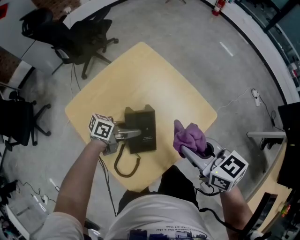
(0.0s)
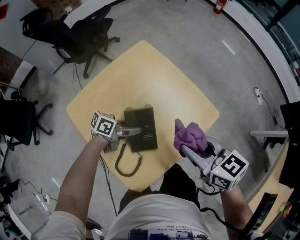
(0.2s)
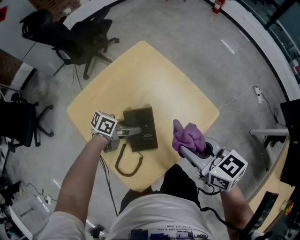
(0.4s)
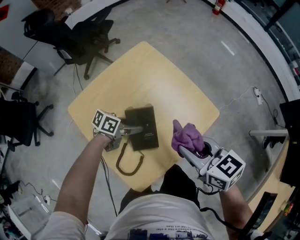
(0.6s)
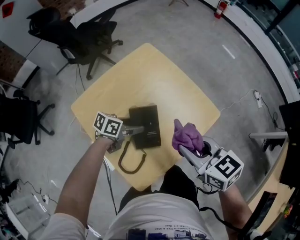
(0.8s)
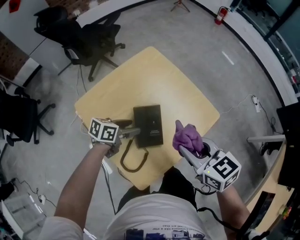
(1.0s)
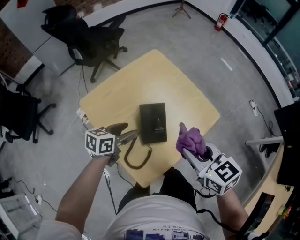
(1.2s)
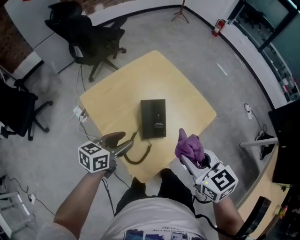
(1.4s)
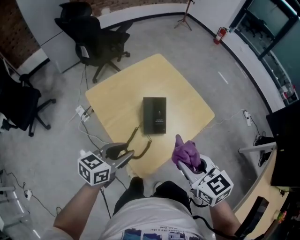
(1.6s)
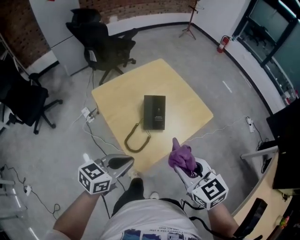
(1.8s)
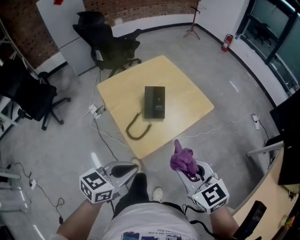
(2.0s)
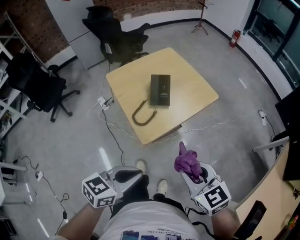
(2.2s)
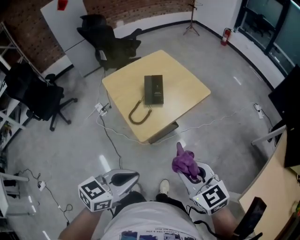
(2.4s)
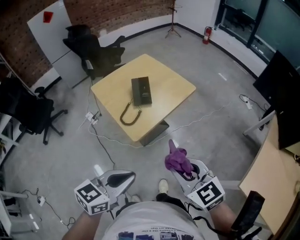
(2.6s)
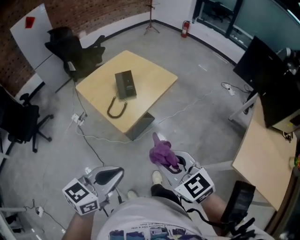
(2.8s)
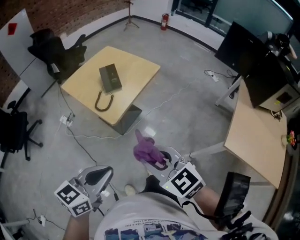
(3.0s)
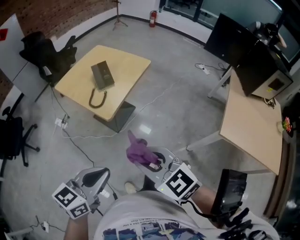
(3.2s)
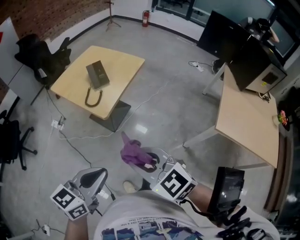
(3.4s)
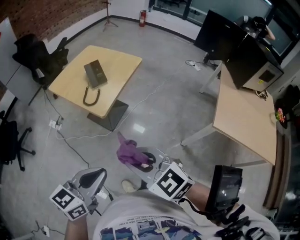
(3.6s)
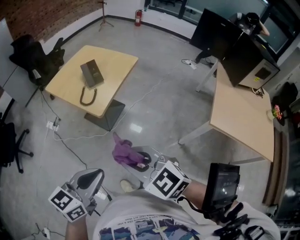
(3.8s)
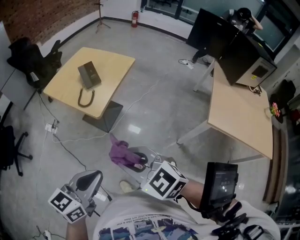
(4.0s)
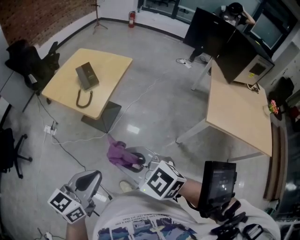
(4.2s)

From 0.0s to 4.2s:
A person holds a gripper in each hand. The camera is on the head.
From 0.0s to 1.4s: The right gripper moves some 10 cm, while the left gripper moves roughly 15 cm, and changes its angle by approximately 40 degrees.
From 1.4s to 2.8s: The left gripper moves backward and upward, approximately 40 cm, turns by roughly 20 degrees, and closes its fingers. Meanwhile the right gripper is displaced backward by some 30 cm.
From 2.8s to 4.2s: The left gripper goes some 10 cm backward. The right gripper goes approximately 15 cm backward and to the left.

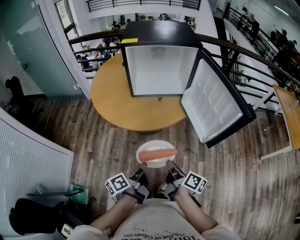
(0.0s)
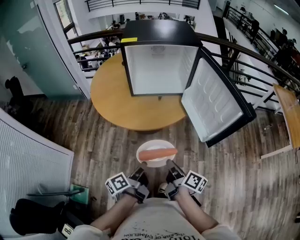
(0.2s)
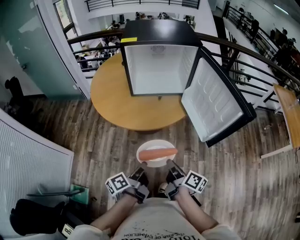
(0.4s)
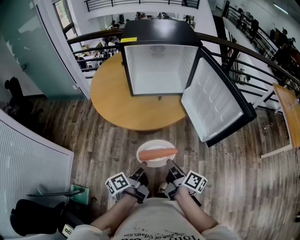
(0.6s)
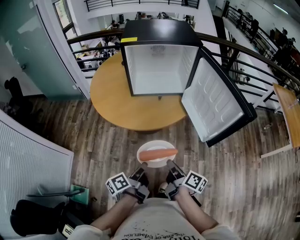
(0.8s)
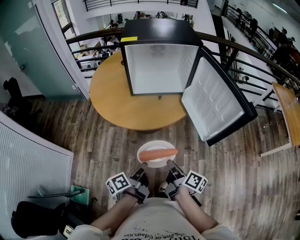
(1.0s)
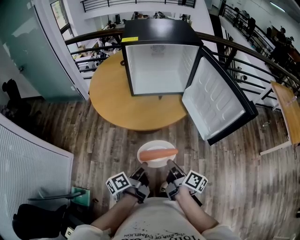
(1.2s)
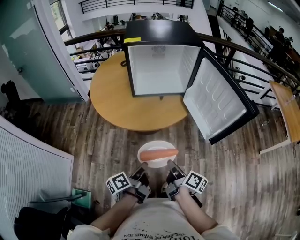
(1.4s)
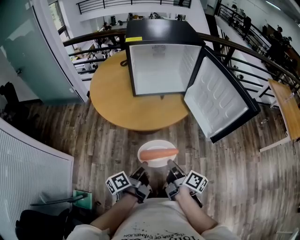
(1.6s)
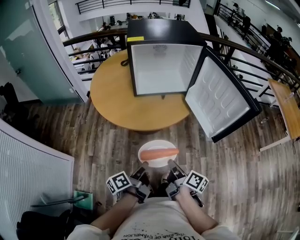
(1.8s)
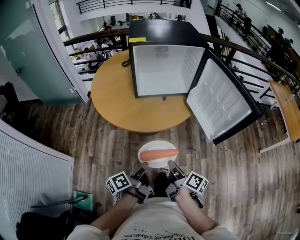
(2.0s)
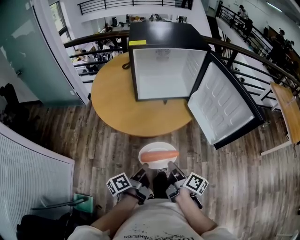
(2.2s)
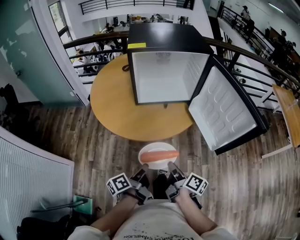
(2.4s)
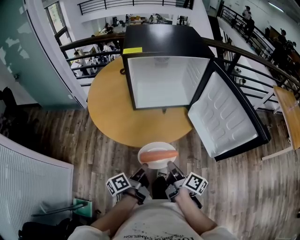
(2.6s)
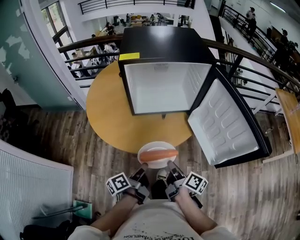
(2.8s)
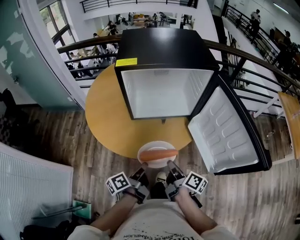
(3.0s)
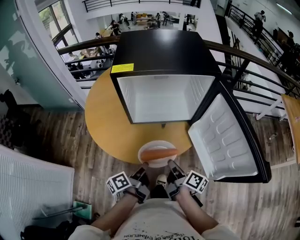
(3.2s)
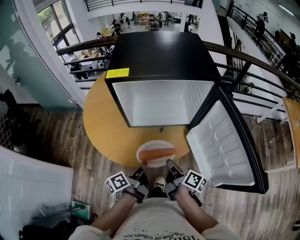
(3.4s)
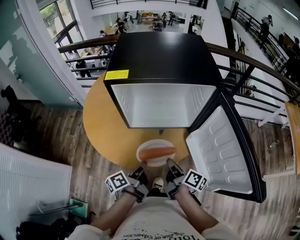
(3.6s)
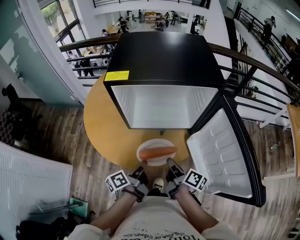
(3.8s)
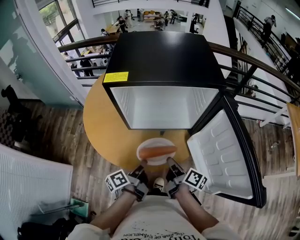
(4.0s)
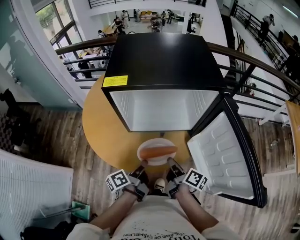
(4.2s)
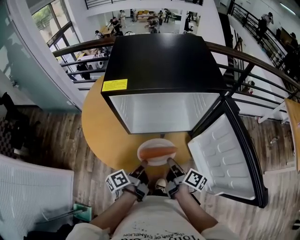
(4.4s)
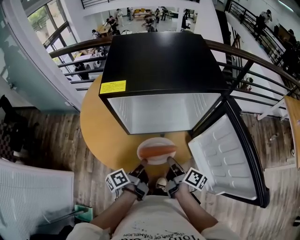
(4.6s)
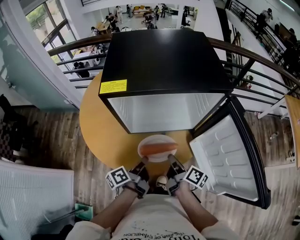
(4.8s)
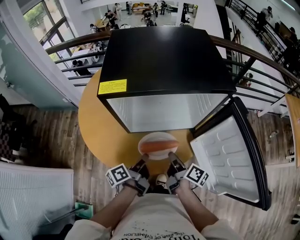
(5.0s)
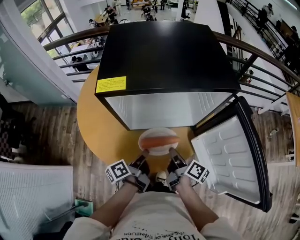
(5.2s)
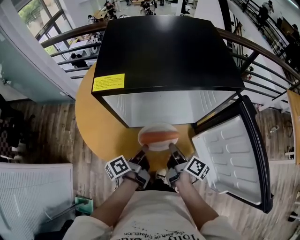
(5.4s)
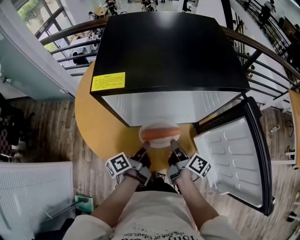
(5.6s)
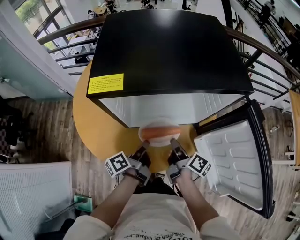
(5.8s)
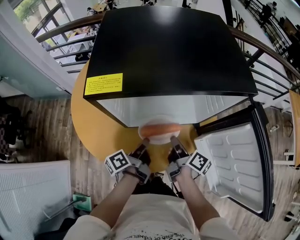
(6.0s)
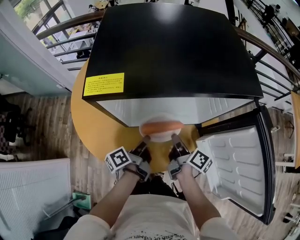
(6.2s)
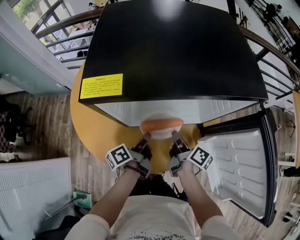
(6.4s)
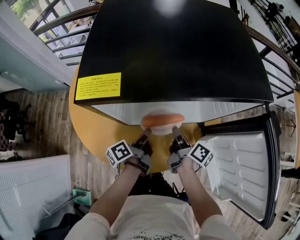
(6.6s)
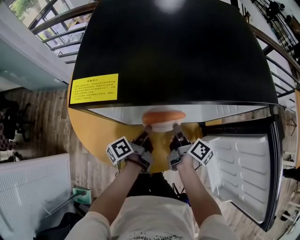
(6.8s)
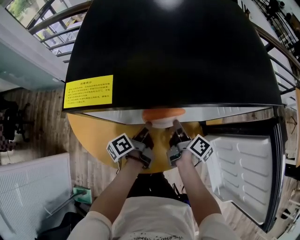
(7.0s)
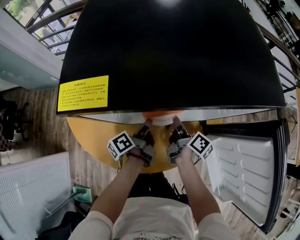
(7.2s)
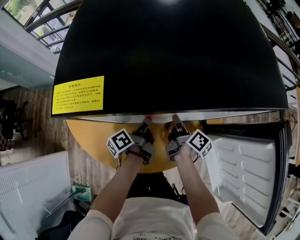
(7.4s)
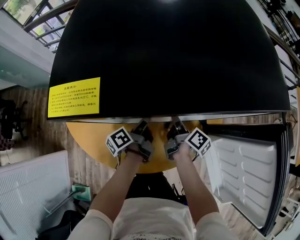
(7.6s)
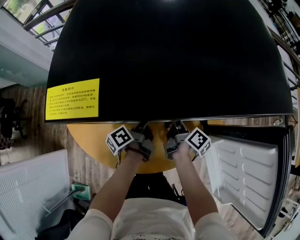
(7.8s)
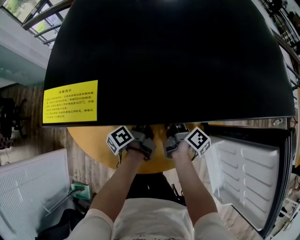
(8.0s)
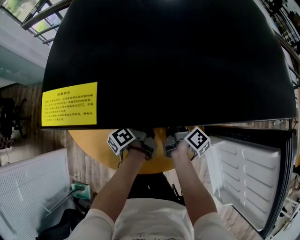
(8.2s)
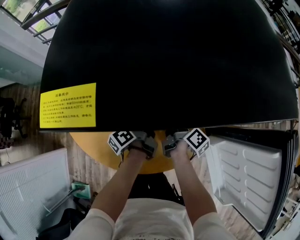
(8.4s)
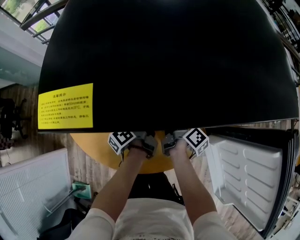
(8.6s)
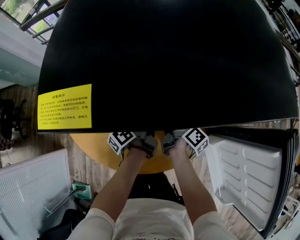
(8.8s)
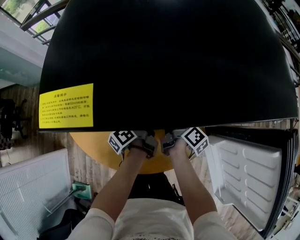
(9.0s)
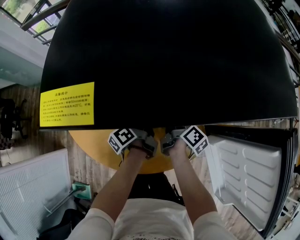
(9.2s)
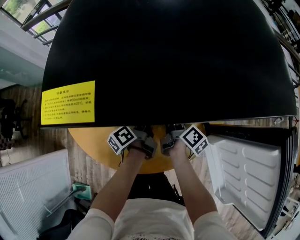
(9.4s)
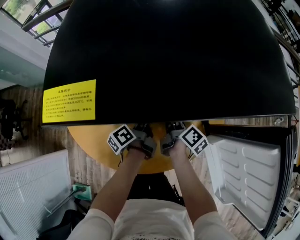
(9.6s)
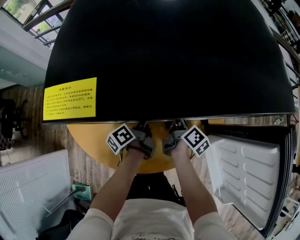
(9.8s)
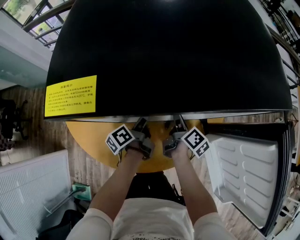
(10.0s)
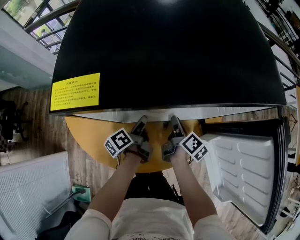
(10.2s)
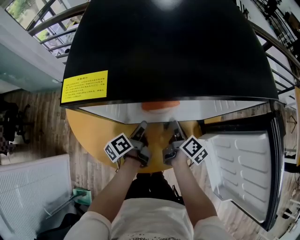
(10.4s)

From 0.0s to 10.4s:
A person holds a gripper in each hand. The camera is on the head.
From 1.4s to 3.0s: The right gripper shifts by about 20 cm.
From 3.0s to 4.4s: The right gripper shifts by approximately 15 cm.
From 4.4s to 6.0s: The right gripper shifts by some 10 cm.
From 6.0s to 7.4s: The right gripper moves approximately 10 cm.
From 9.0s to 10.4s: The right gripper ends up approximately 5 cm from where it was.

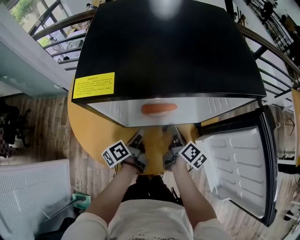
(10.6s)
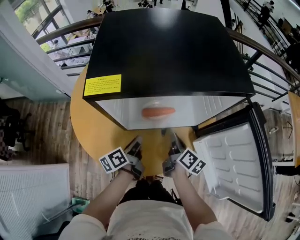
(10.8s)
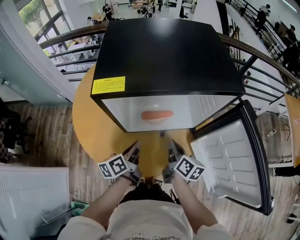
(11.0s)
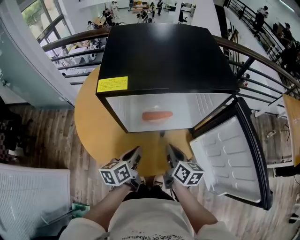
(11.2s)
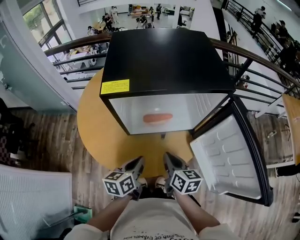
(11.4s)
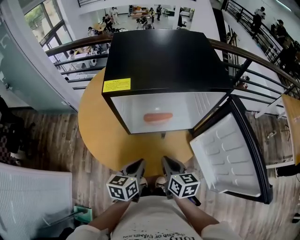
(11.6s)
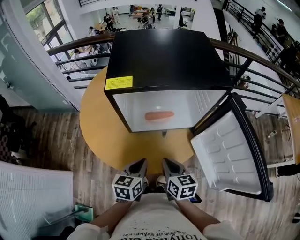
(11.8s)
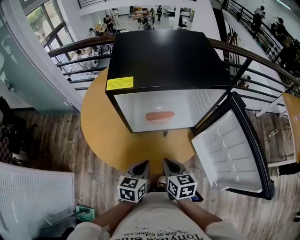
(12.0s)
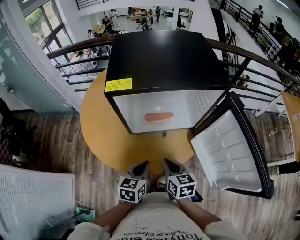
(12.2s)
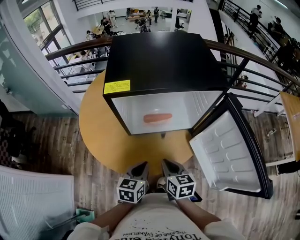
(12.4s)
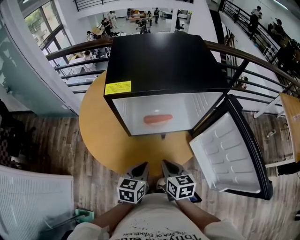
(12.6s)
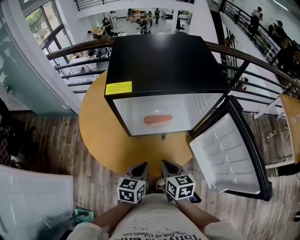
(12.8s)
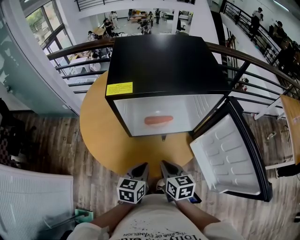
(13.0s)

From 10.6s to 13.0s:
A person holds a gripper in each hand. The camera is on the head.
From 10.6s to 11.8s: The right gripper changes place by roughly 20 cm, and rolls counterclockwise, seen from behind, by roughly 40 degrees.

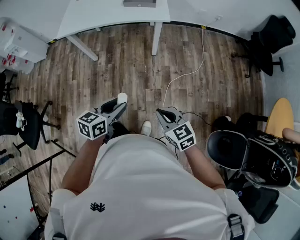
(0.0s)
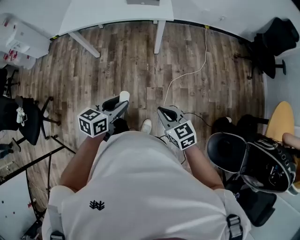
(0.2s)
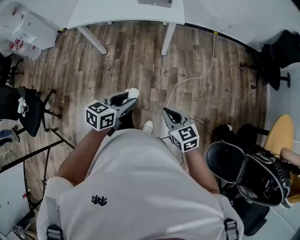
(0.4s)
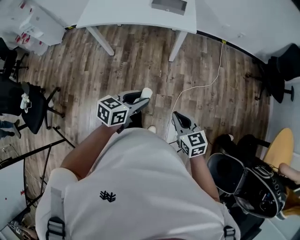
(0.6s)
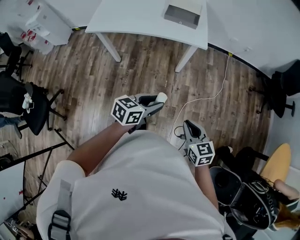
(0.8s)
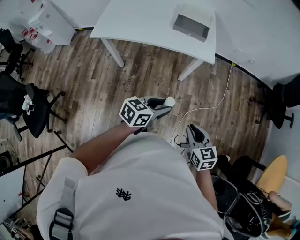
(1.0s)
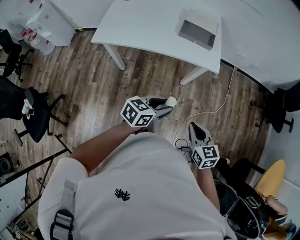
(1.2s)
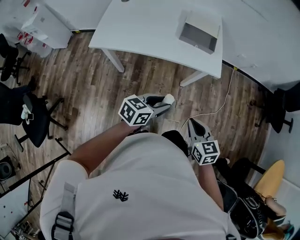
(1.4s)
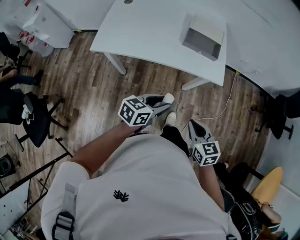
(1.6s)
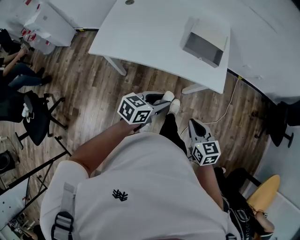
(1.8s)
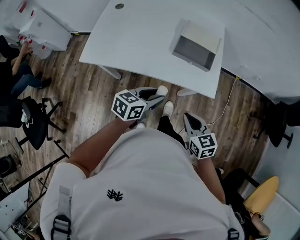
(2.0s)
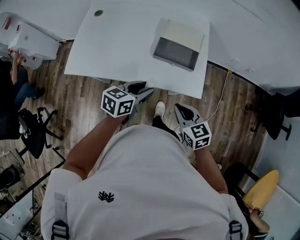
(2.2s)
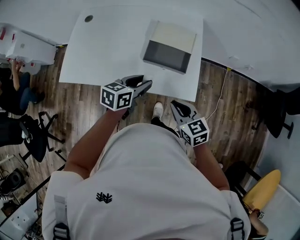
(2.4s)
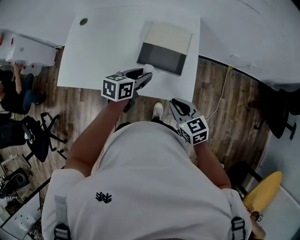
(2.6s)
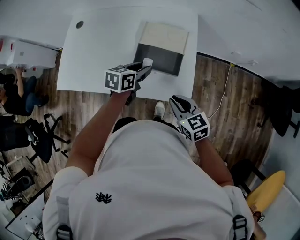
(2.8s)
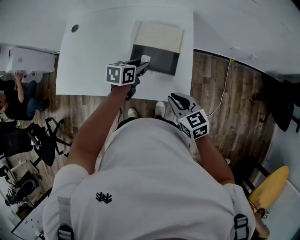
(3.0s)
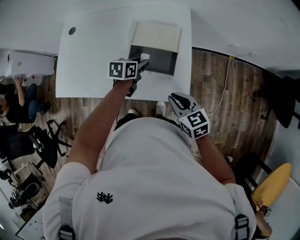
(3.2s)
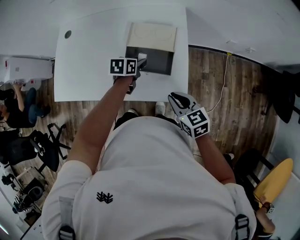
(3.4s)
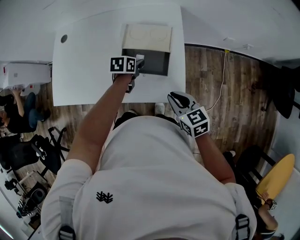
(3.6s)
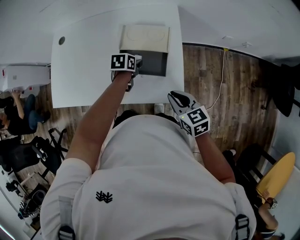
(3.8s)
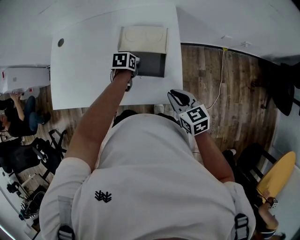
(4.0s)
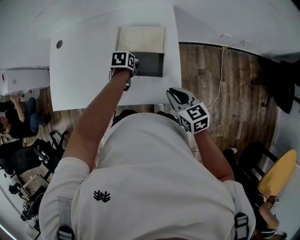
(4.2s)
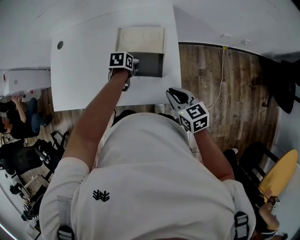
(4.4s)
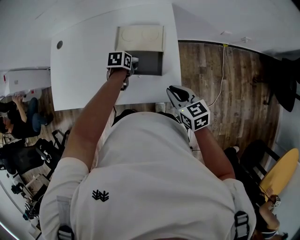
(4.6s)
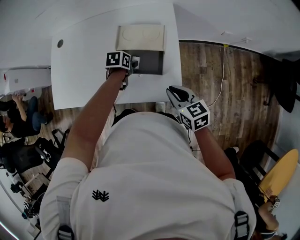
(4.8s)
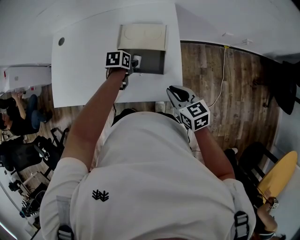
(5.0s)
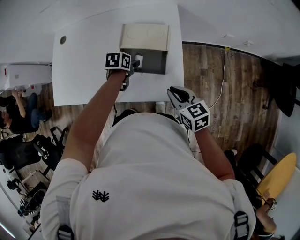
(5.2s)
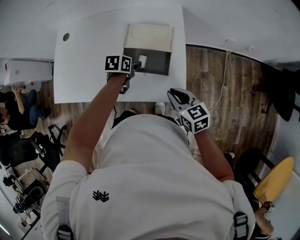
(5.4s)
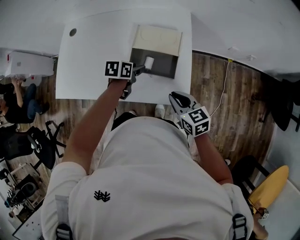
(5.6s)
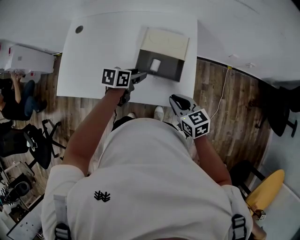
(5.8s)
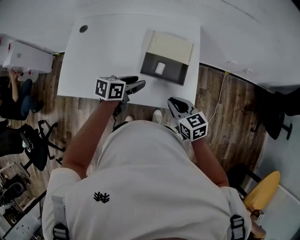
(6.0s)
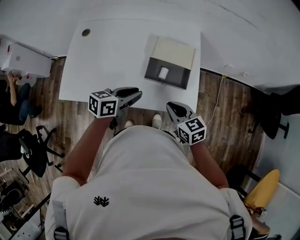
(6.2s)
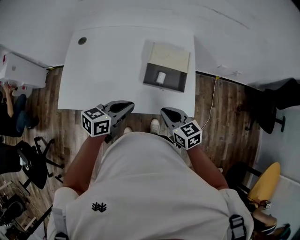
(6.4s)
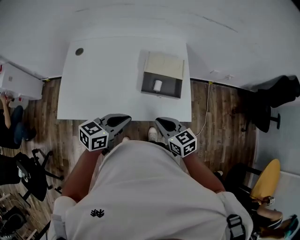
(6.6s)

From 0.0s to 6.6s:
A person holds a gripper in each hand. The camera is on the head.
From 0.0s to 1.6s: Both grippers move forward, about 30 cm.
From 1.6s to 3.2s: Both grippers travel together forward, about 30 cm. The left gripper turns by some 20 degrees.
From 3.2s to 5.0s: The left gripper shifts about 5 cm downward, and rotates some 20 degrees.
From 5.0s to 6.6s: The right gripper shifts roughly 15 cm to the left. Meanwhile the left gripper travels upward, backward and to the left by about 30 cm, tips its fingers upward by some 50 degrees, and closes.
